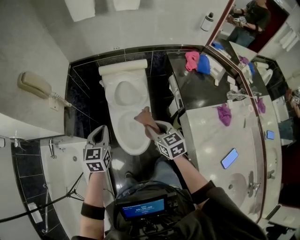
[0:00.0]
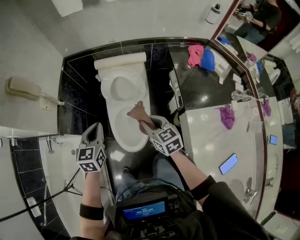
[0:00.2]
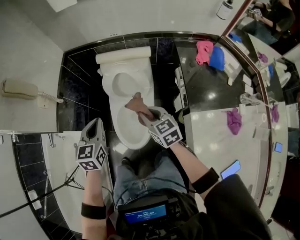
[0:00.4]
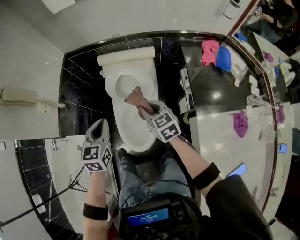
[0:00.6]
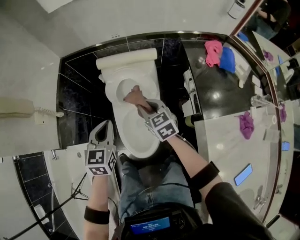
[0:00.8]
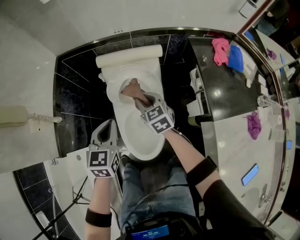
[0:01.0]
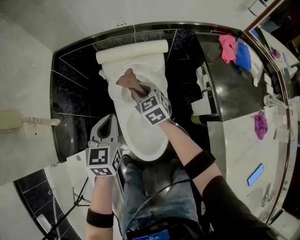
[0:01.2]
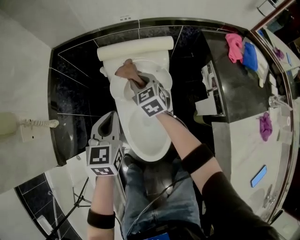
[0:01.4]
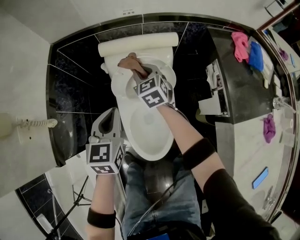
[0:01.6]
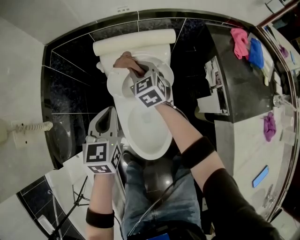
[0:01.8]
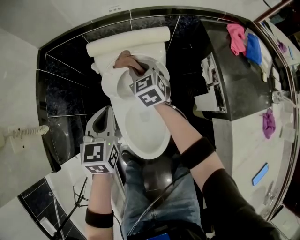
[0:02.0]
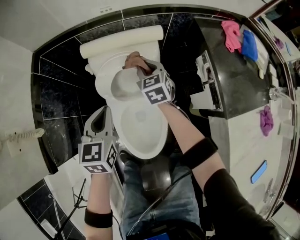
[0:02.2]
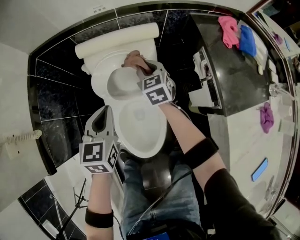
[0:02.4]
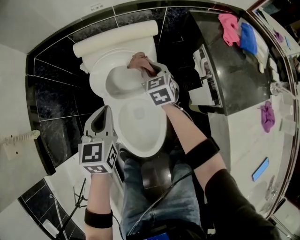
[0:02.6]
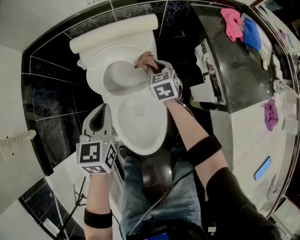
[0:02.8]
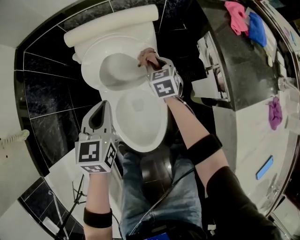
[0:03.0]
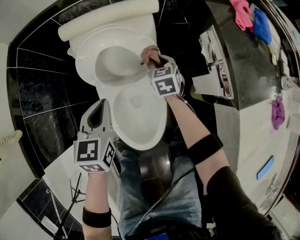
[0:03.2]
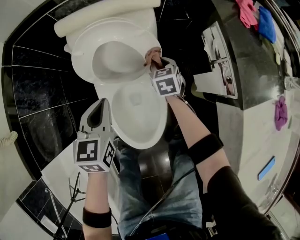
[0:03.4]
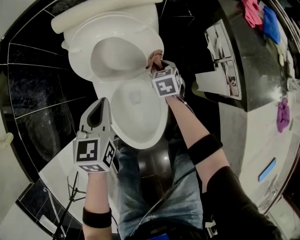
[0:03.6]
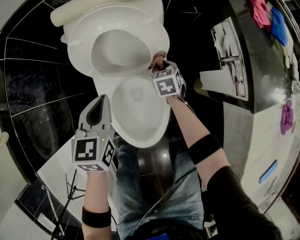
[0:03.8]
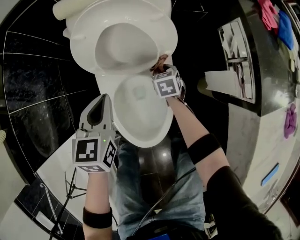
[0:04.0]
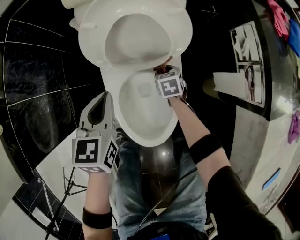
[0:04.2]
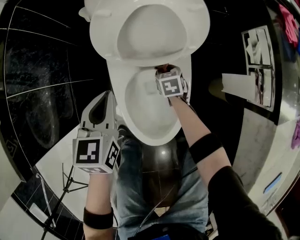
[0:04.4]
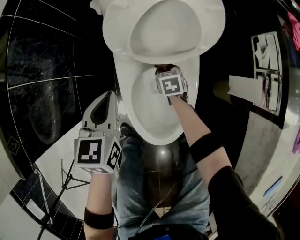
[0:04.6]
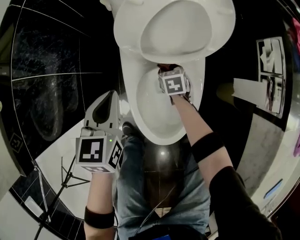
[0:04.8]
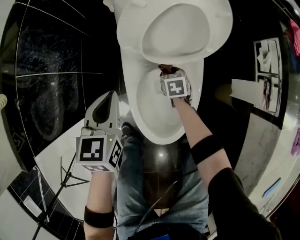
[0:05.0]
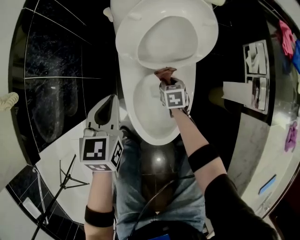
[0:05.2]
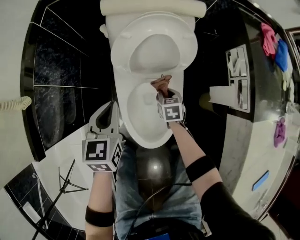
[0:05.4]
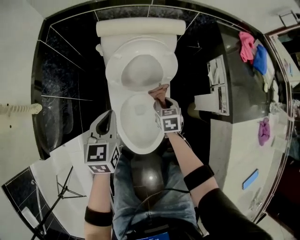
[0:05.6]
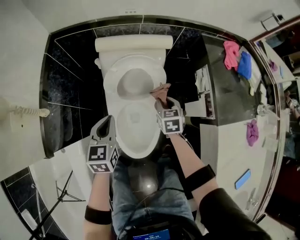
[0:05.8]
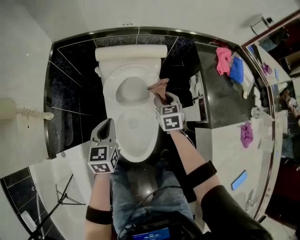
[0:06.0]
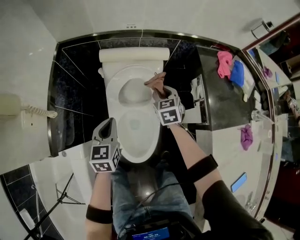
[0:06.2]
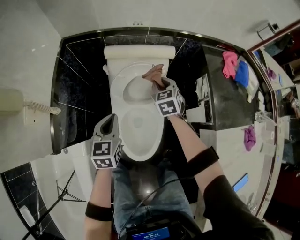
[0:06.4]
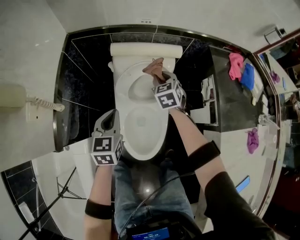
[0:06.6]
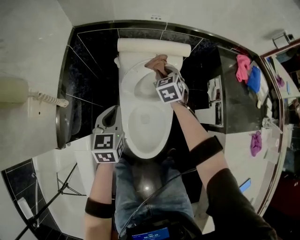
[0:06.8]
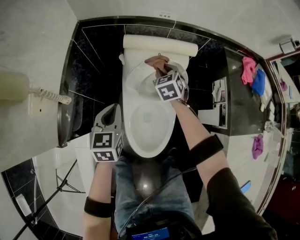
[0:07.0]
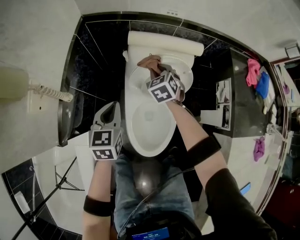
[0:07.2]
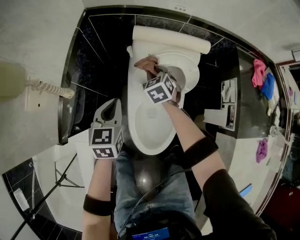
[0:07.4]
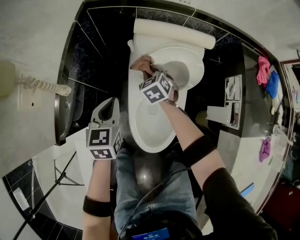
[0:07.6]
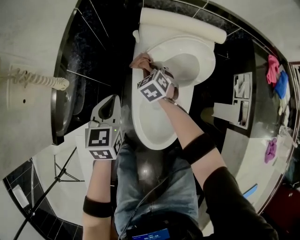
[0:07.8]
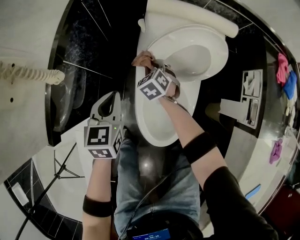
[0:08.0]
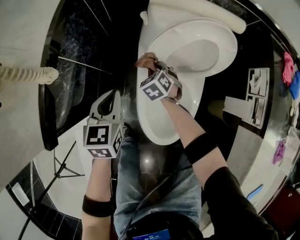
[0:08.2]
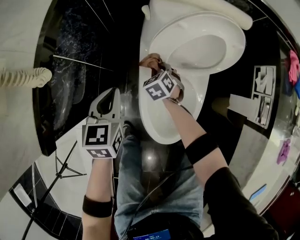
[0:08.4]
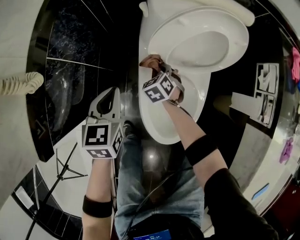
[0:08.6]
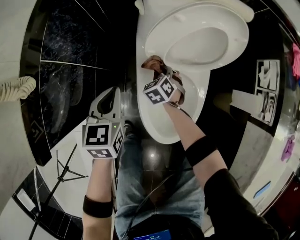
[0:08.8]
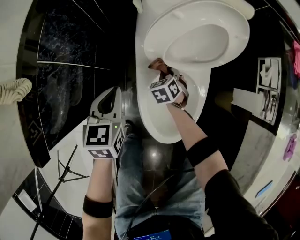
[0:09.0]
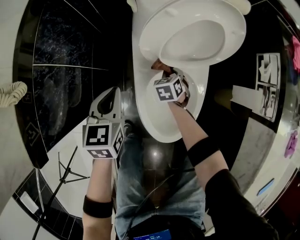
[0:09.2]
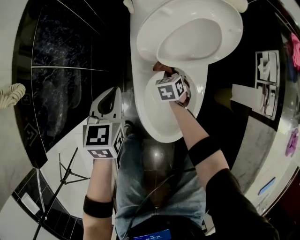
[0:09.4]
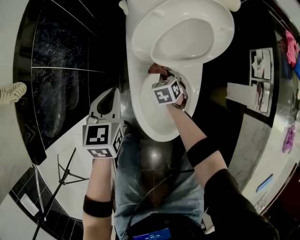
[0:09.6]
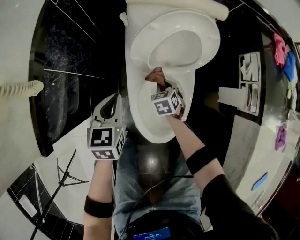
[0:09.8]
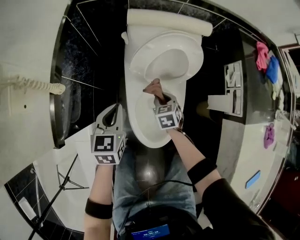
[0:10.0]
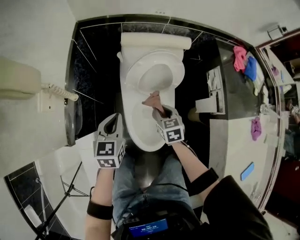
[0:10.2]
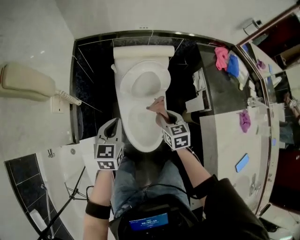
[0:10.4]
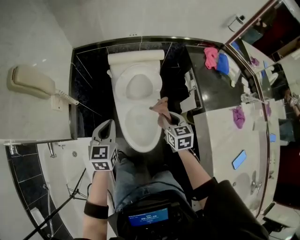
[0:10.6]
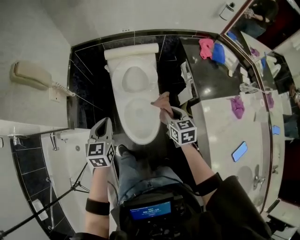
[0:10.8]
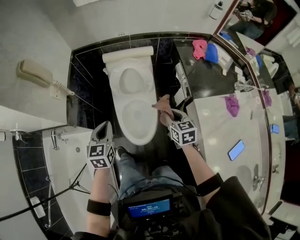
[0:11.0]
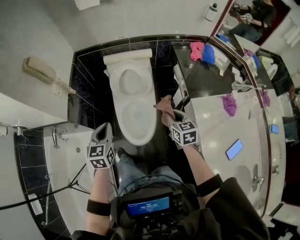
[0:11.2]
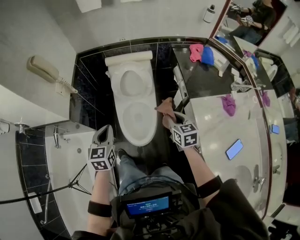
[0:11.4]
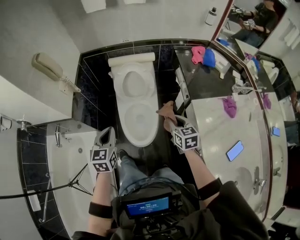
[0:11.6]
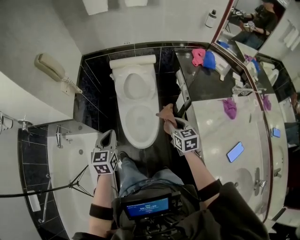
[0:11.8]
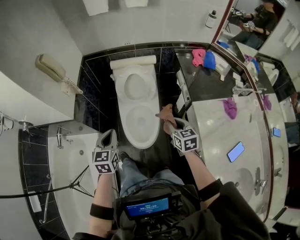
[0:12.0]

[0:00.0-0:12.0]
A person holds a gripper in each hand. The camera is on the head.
0:00.0 to 0:01.6: The left gripper is displaced forward and downward by some 30 cm. Meanwhile the right gripper goes approximately 50 cm forward and downward.
0:01.6 to 0:03.0: The right gripper goes some 20 cm to the right and downward; the left gripper heads downward and to the right, covering some 10 cm.
0:03.0 to 0:04.4: The left gripper heads downward and to the left, covering some 15 cm; the right gripper travels downward by some 25 cm.
0:04.4 to 0:06.0: The left gripper travels upward by about 20 cm, while the right gripper moves upward, approximately 40 cm.
0:06.0 to 0:07.6: The left gripper goes approximately 15 cm to the left and downward. The right gripper heads to the left and downward, covering approximately 25 cm, and swivels approximately 30 degrees.
0:07.6 to 0:09.0: The right gripper goes some 25 cm downward, while the left gripper moves downward, about 15 cm.
0:09.0 to 0:10.4: The left gripper travels upward by about 25 cm. The right gripper shifts some 40 cm upward, and swivels about 30 degrees.
0:10.4 to 0:12.0: The right gripper goes approximately 25 cm backward, to the right and upward; the left gripper shifts roughly 25 cm backward and upward.

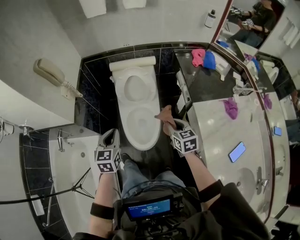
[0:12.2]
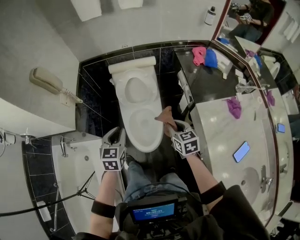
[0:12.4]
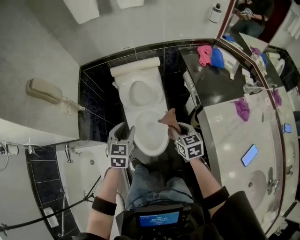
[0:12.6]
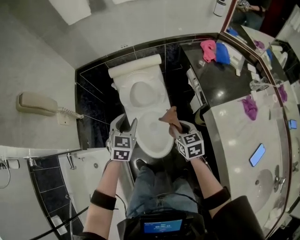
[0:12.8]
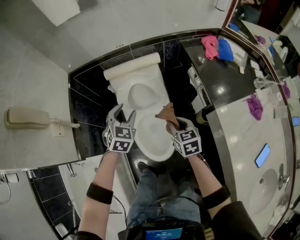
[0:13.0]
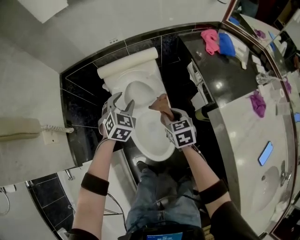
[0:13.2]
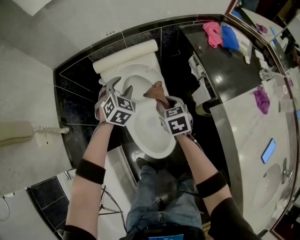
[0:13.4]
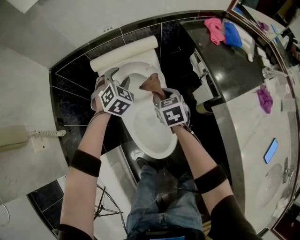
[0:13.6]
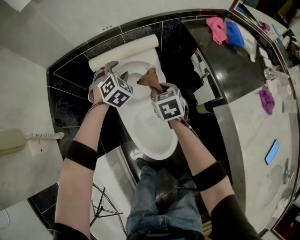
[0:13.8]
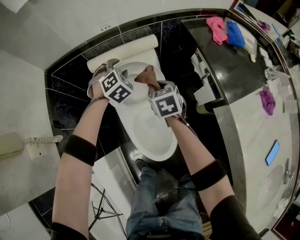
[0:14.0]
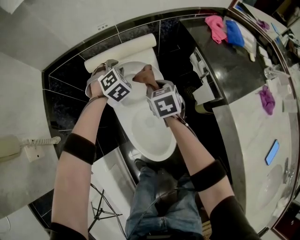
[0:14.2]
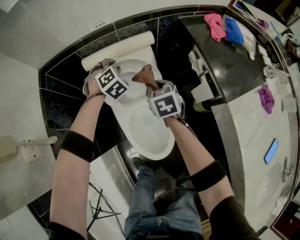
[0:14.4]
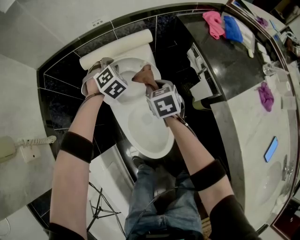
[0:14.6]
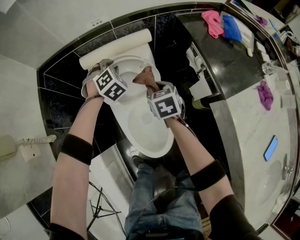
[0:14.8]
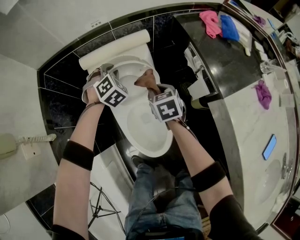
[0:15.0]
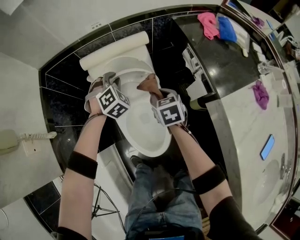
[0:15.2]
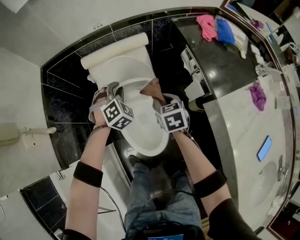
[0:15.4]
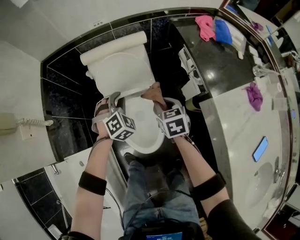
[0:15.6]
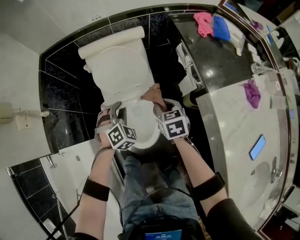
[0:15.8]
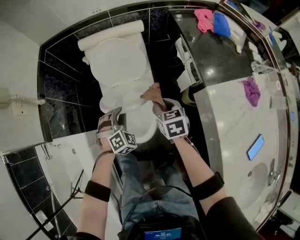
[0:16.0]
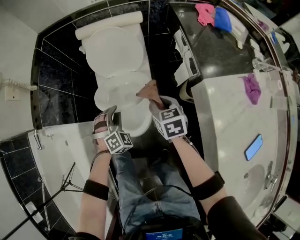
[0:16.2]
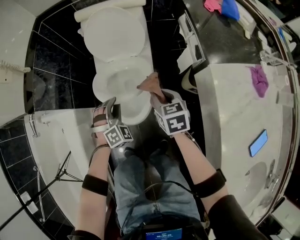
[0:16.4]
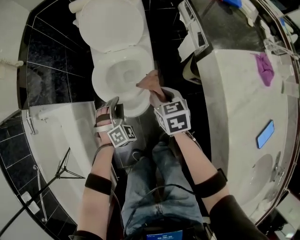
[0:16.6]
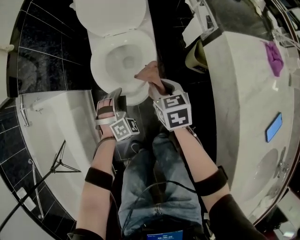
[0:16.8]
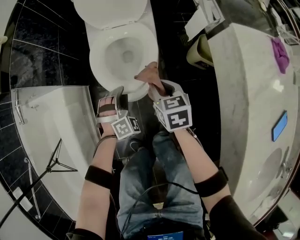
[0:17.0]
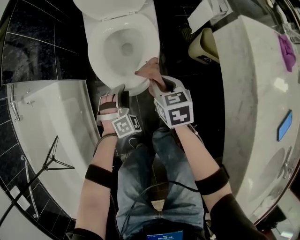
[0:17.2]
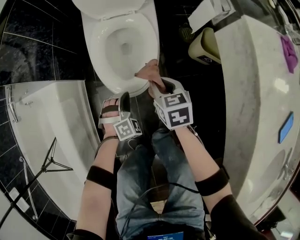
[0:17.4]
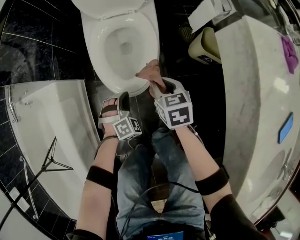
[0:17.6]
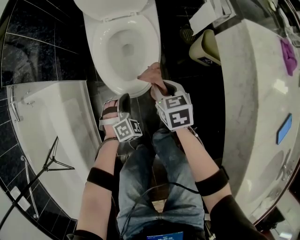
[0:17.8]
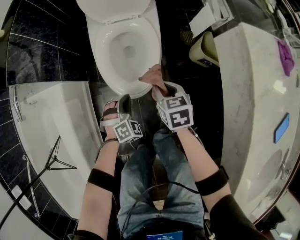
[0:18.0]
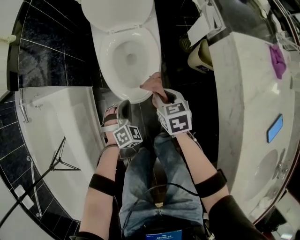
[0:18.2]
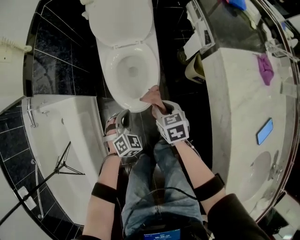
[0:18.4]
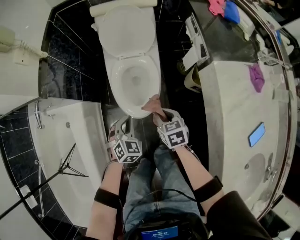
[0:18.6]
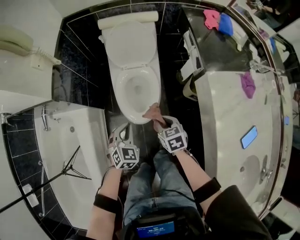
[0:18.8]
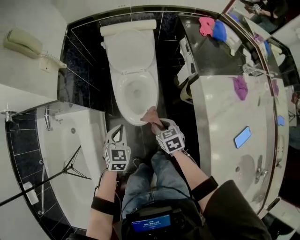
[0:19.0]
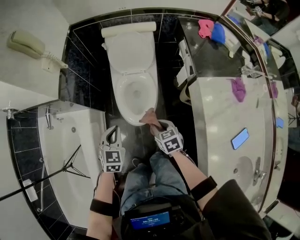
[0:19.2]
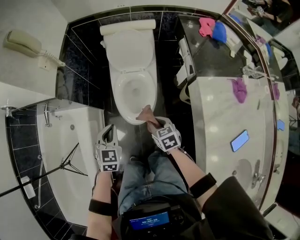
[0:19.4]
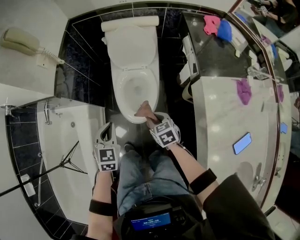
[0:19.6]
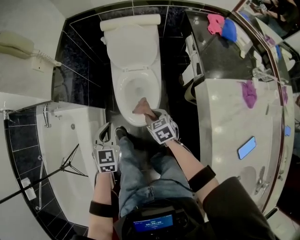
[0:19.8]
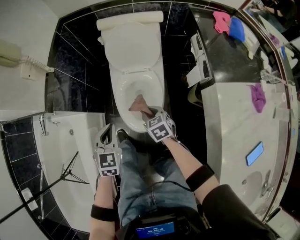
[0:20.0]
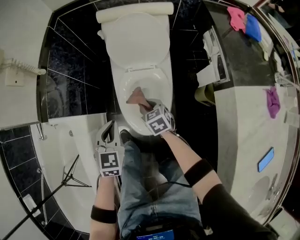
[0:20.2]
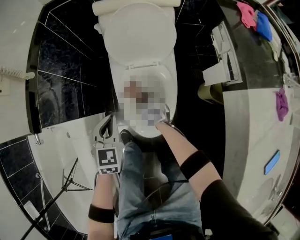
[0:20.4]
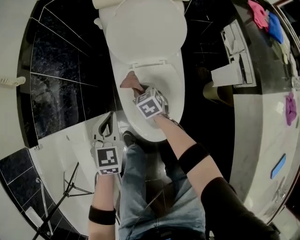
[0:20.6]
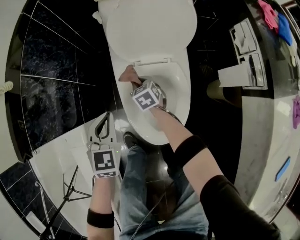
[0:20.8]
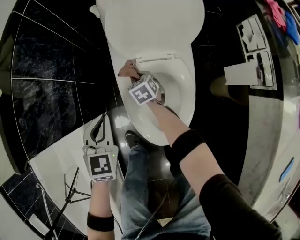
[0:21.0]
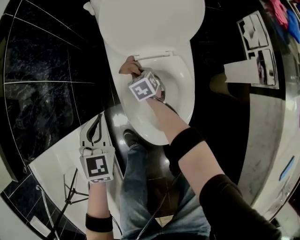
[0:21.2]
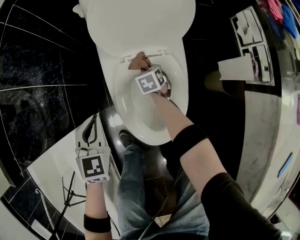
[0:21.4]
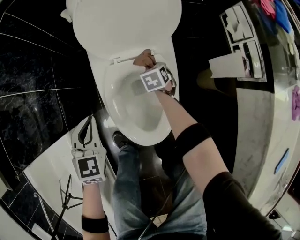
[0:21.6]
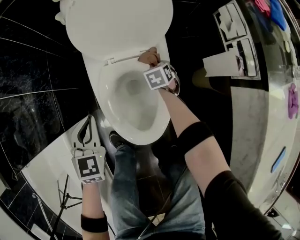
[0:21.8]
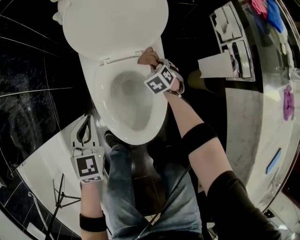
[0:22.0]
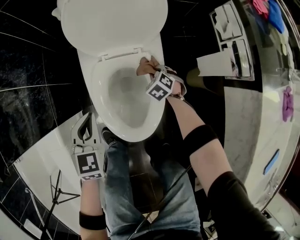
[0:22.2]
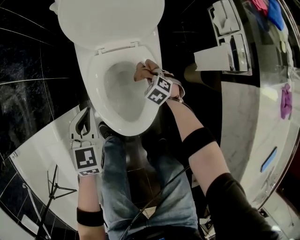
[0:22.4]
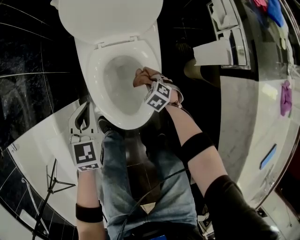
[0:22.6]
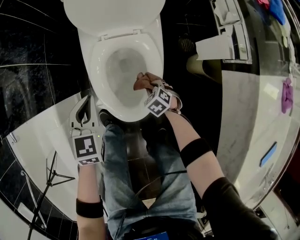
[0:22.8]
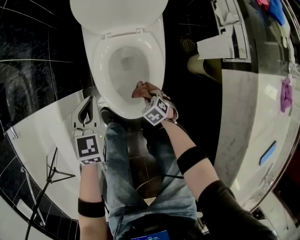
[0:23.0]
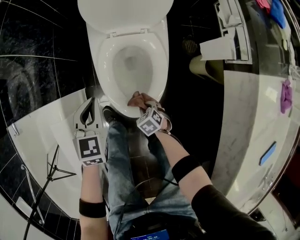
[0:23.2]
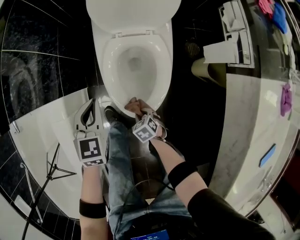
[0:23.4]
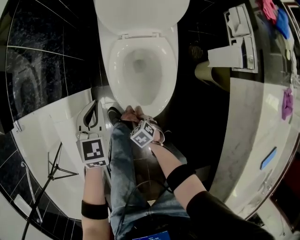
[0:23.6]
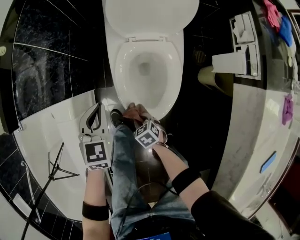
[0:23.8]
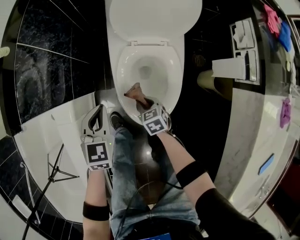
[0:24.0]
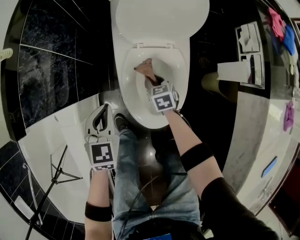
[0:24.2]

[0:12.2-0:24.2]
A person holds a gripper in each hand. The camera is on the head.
0:12.2 to 0:13.8: The right gripper is displaced forward and downward by approximately 35 cm. Meanwhile the left gripper travels forward by some 50 cm, rolls clockwise, seen from behind, by some 60 degrees, and opens up.
0:13.8 to 0:15.2: The left gripper ends up some 5 cm from where it was, and closes, while the right gripper changes place by about 5 cm.
0:15.2 to 0:16.6: The left gripper moves backward and downward, roughly 40 cm. Meanwhile the right gripper goes some 25 cm backward.
0:16.6 to 0:18.2: The left gripper travels backward and downward by approximately 10 cm, and closes up. Meanwhile the right gripper shifts about 10 cm downward and backward.
0:18.2 to 0:19.8: The right gripper travels upward by roughly 15 cm. Meanwhile the left gripper goes roughly 30 cm upward, and rotates around the line of its fingers by some 40 degrees, counterclockwise from behind.
0:19.8 to 0:21.2: The grippers both shift downward and forward by about 40 cm.
0:21.2 to 0:22.6: The left gripper changes place by some 10 cm. Meanwhile the right gripper shifts by roughly 25 cm, and swivels roughly 30 degrees.
0:22.6 to 0:24.2: The left gripper ends up approximately 10 cm from where it was, while the right gripper shifts by some 20 cm, and turns by some 30 degrees.
